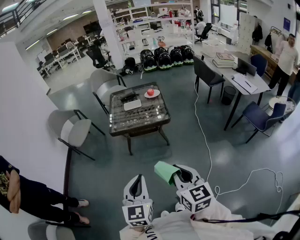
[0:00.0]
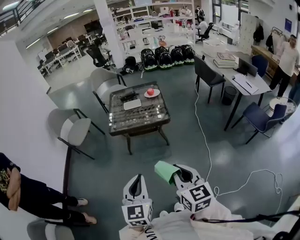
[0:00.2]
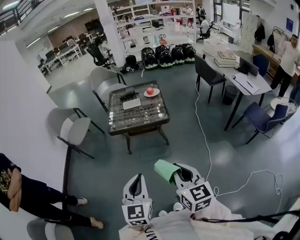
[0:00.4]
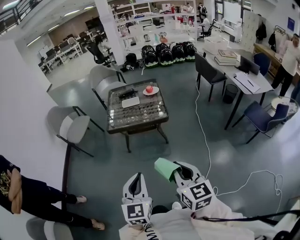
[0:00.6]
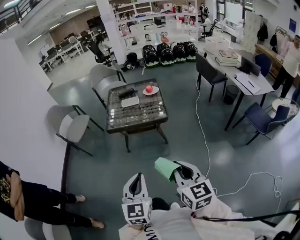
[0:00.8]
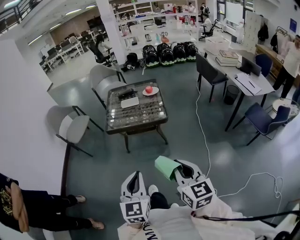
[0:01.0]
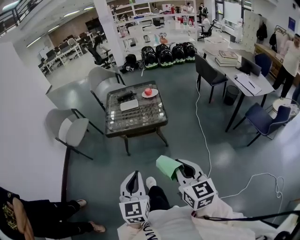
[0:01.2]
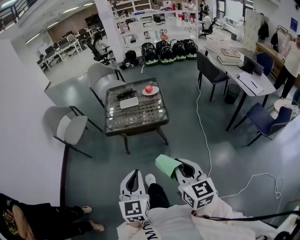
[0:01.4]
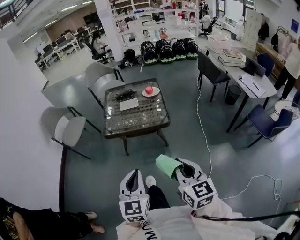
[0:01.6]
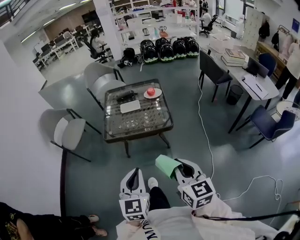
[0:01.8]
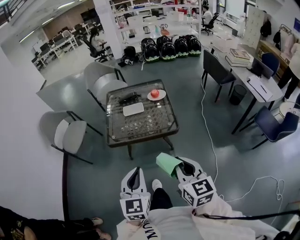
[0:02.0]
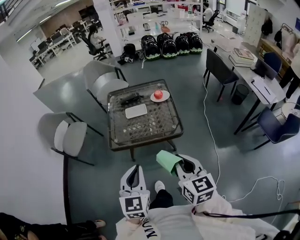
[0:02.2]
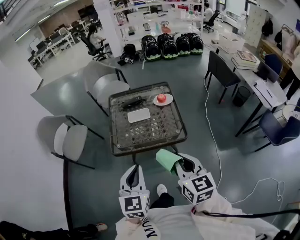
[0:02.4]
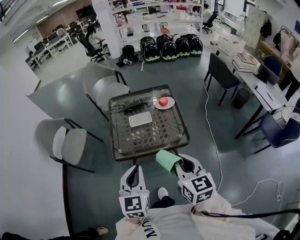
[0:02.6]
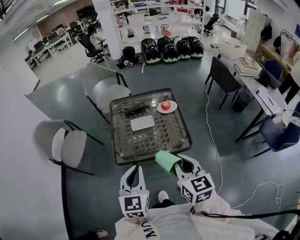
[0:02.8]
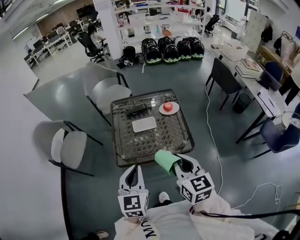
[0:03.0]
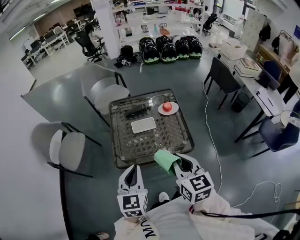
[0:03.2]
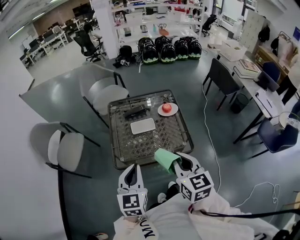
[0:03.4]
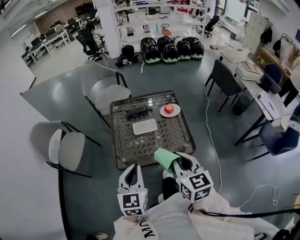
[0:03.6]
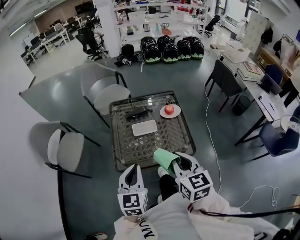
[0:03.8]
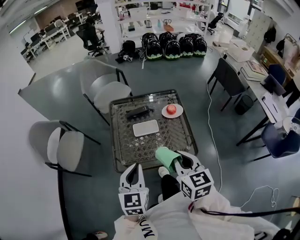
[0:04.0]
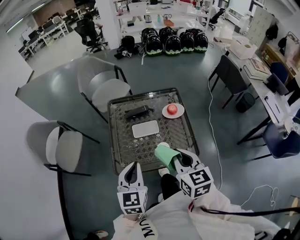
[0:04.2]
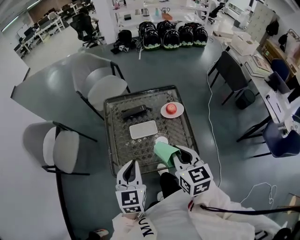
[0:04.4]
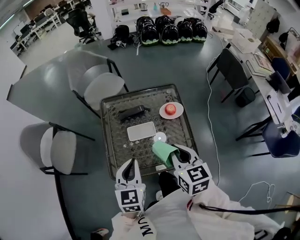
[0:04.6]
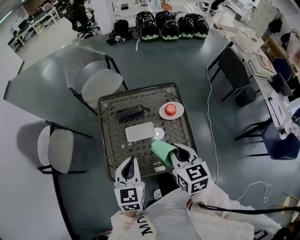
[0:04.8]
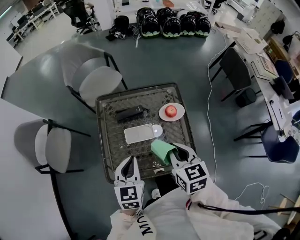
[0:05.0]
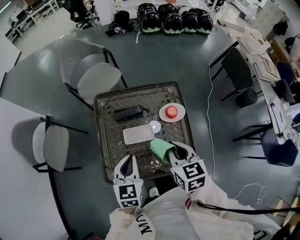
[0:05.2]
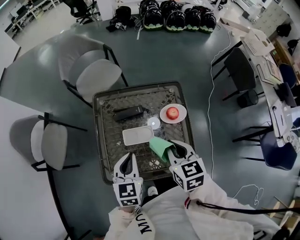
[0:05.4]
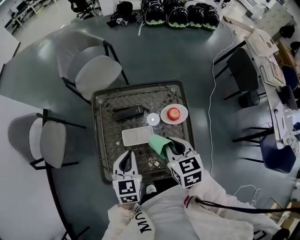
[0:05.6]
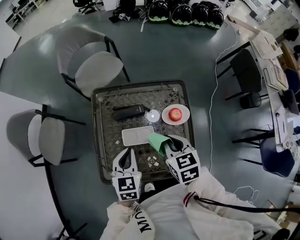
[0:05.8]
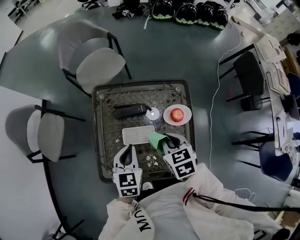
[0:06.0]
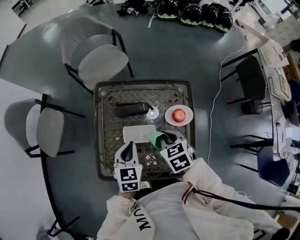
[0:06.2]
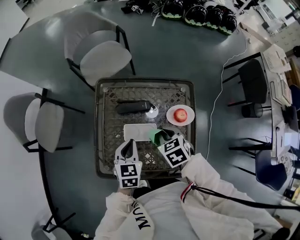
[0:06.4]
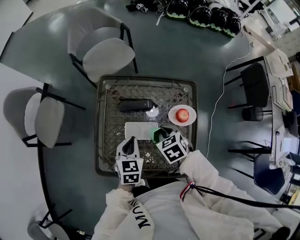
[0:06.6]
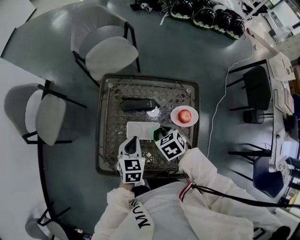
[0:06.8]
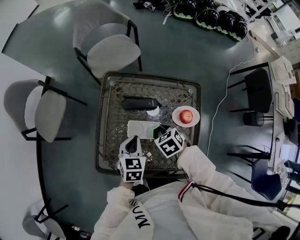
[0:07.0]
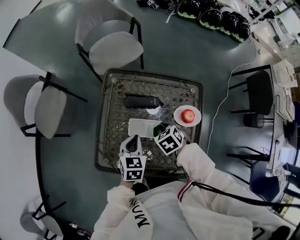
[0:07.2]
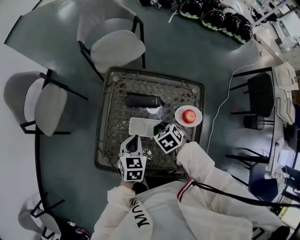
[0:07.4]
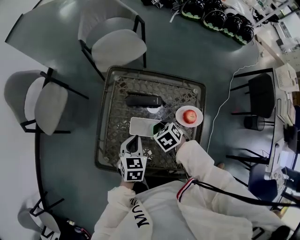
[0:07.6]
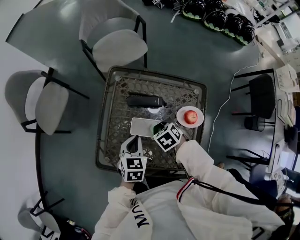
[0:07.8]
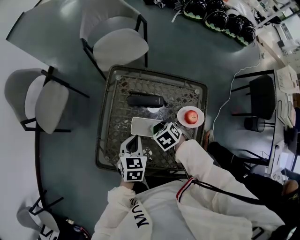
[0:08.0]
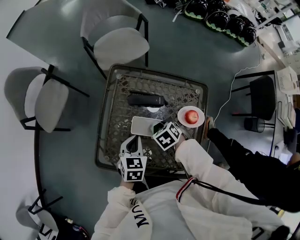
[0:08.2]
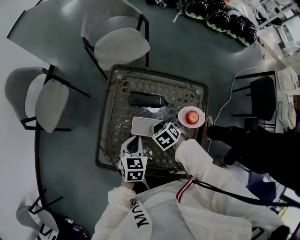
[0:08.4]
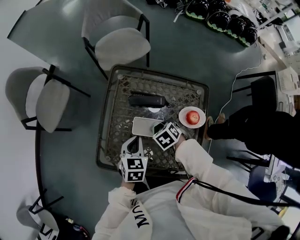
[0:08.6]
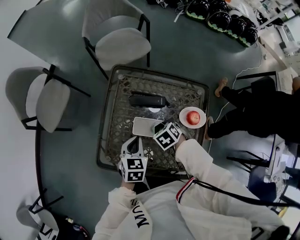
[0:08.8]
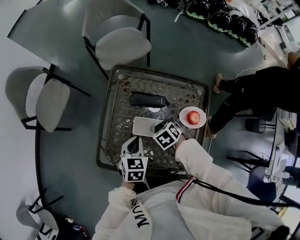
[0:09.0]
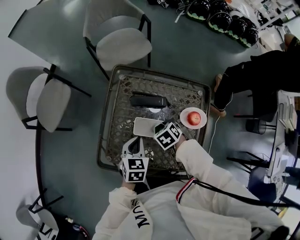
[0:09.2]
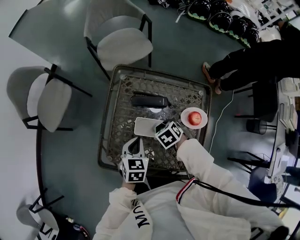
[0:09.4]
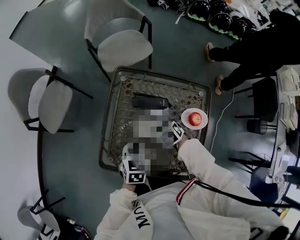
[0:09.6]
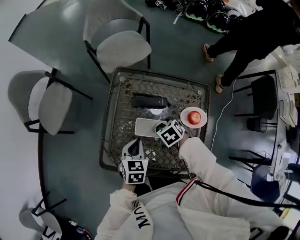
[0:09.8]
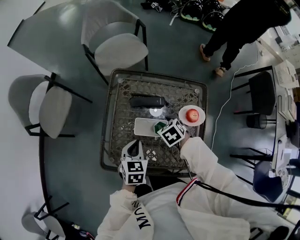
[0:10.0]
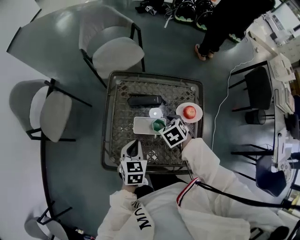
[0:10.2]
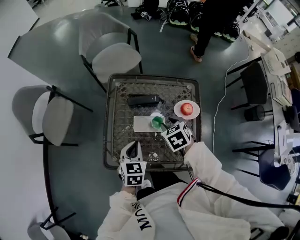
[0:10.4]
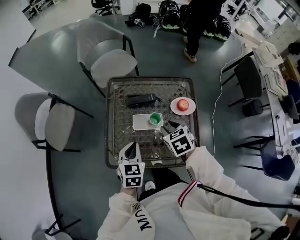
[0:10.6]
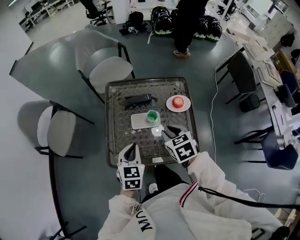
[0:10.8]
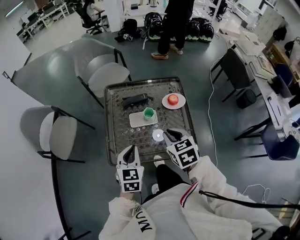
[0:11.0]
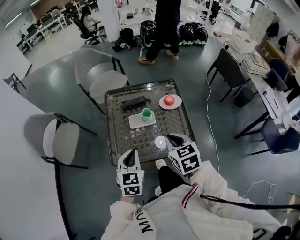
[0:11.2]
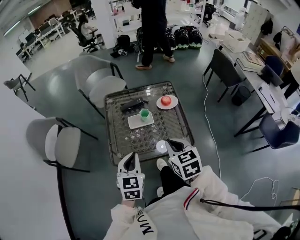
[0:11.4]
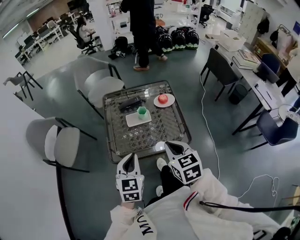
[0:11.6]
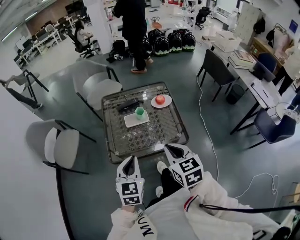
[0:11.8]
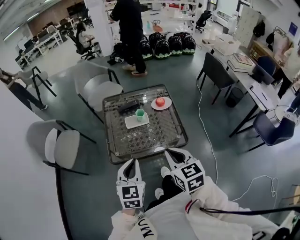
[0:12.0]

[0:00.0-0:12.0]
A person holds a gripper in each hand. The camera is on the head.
0:00.0 to 0:01.6: The left gripper travels forward by about 15 cm. Meanwhile the right gripper is displaced forward and to the right by approximately 15 cm.
0:01.6 to 0:03.0: The grippers both shift forward and to the left by some 35 cm.
0:03.0 to 0:04.4: The two grippers go about 15 cm forward.
0:04.4 to 0:06.0: Both grippers move forward and downward, approximately 25 cm. The right gripper turns by about 30 degrees.
0:06.0 to 0:07.6: The right gripper travels downward by roughly 15 cm, and changes its angle by roughly 30 degrees; the left gripper shifts some 10 cm downward.
0:07.6 to 0:09.0: There are only small adjustments of the grippers.
0:09.0 to 0:10.4: The right gripper heads upward, covering some 10 cm, changes its angle by approximately 20 degrees, and opens up; the left gripper shifts by approximately 10 cm.
0:10.4 to 0:12.0: Both grippers travel together backward and upward, some 40 cm. The right gripper angles its fingers upward, by roughly 30 degrees, and closes up. The left gripper changes its angle by roughly 30 degrees.

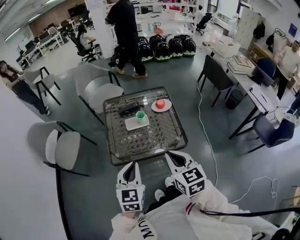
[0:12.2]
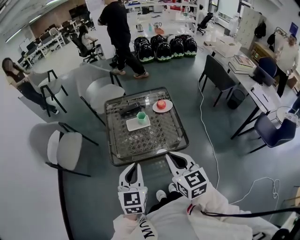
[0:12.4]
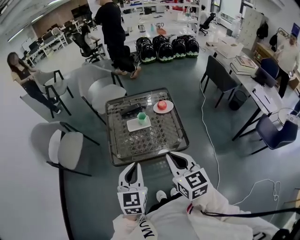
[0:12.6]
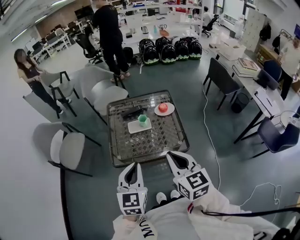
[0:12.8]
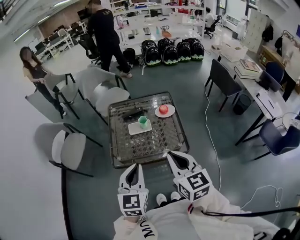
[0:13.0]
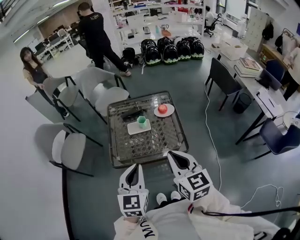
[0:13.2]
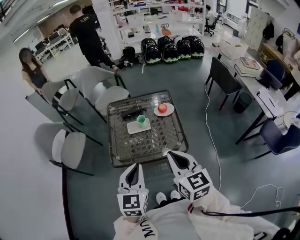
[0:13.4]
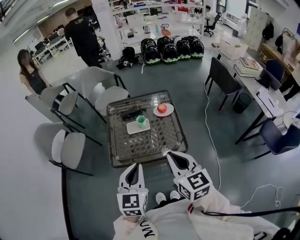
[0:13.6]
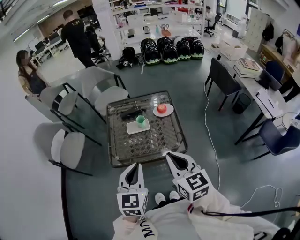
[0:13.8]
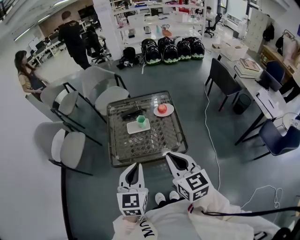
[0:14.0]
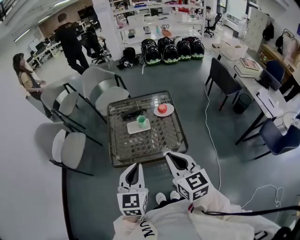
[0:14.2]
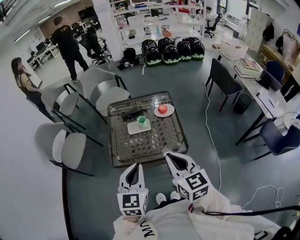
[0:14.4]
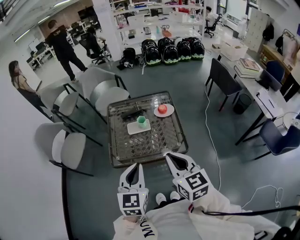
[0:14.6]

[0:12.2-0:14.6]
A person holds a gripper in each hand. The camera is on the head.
0:12.2 to 0:13.4: The left gripper travels to the right and upward by roughly 10 cm, while the right gripper moves to the right, some 5 cm.
0:13.4 to 0:14.6: The two grippers keep their place.

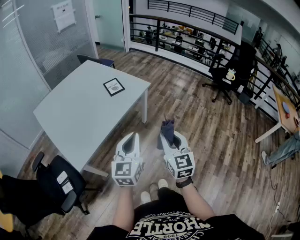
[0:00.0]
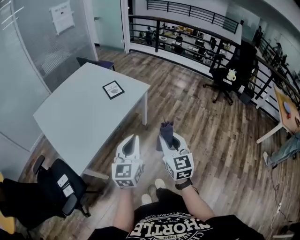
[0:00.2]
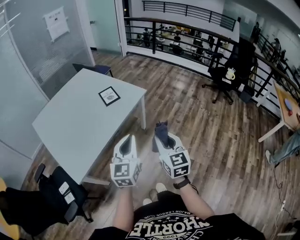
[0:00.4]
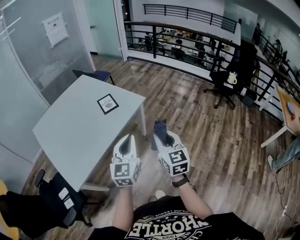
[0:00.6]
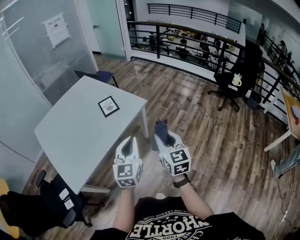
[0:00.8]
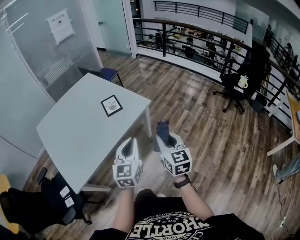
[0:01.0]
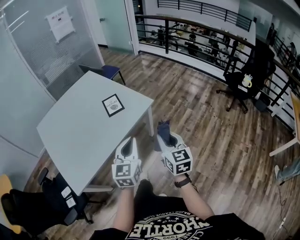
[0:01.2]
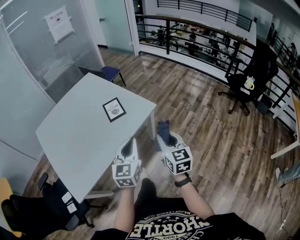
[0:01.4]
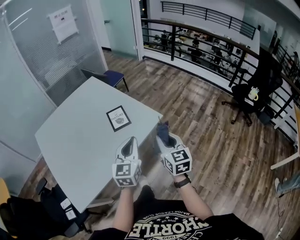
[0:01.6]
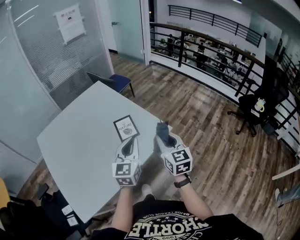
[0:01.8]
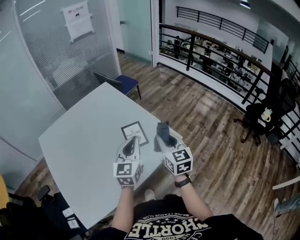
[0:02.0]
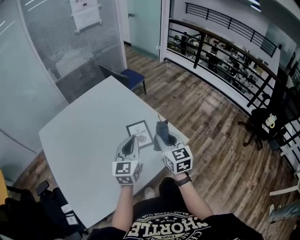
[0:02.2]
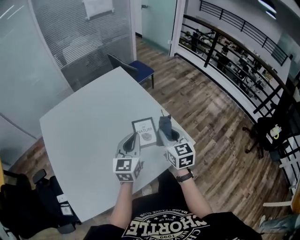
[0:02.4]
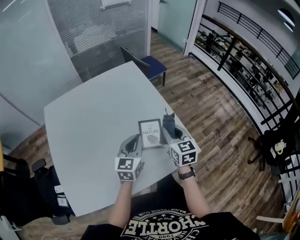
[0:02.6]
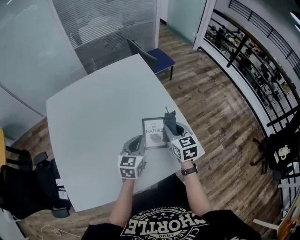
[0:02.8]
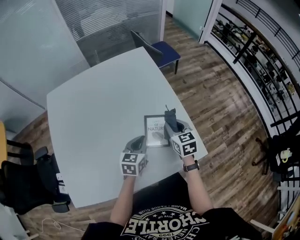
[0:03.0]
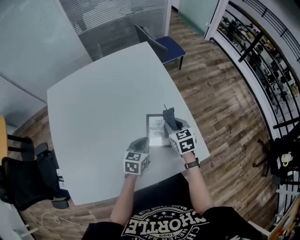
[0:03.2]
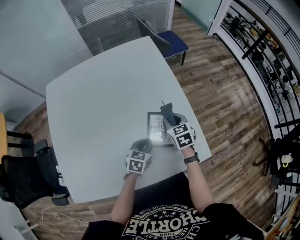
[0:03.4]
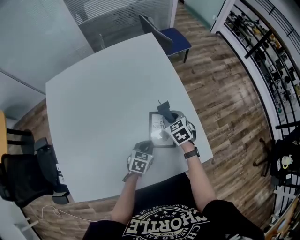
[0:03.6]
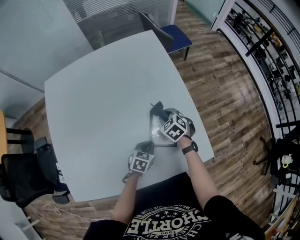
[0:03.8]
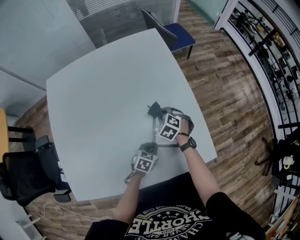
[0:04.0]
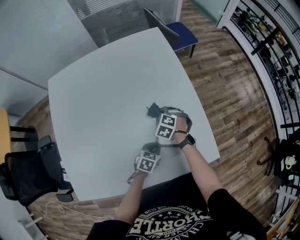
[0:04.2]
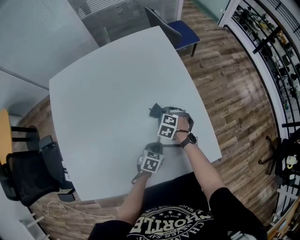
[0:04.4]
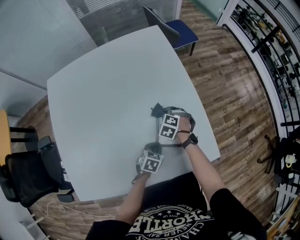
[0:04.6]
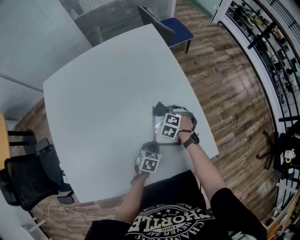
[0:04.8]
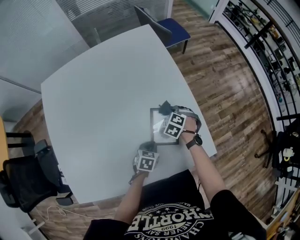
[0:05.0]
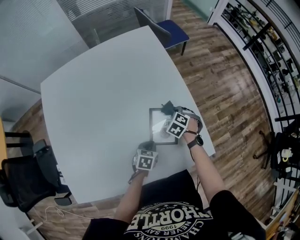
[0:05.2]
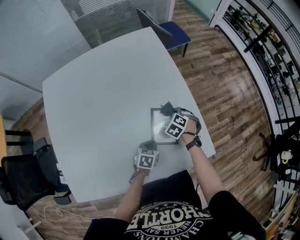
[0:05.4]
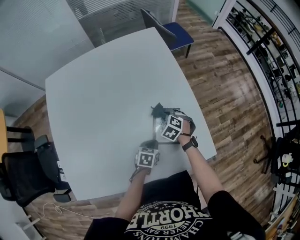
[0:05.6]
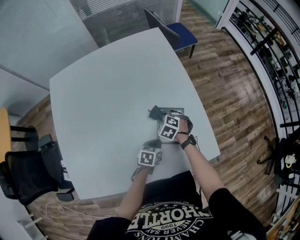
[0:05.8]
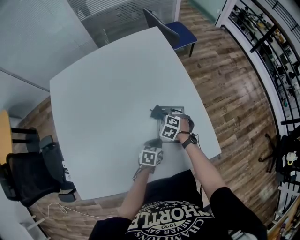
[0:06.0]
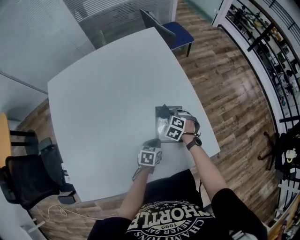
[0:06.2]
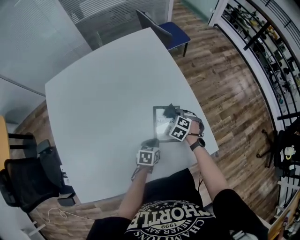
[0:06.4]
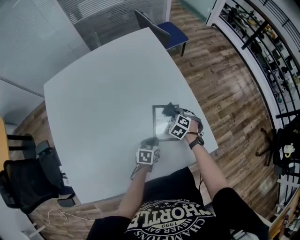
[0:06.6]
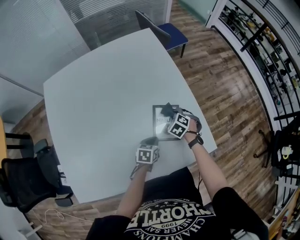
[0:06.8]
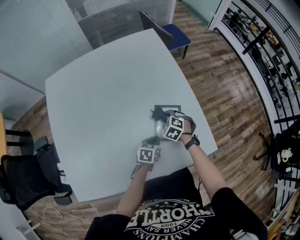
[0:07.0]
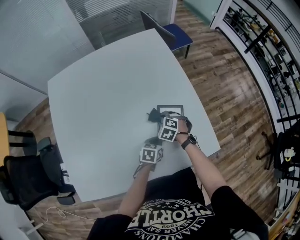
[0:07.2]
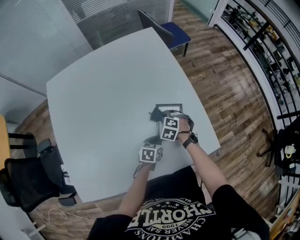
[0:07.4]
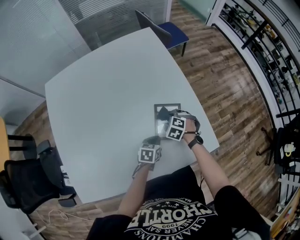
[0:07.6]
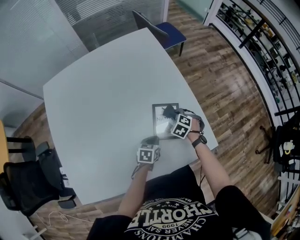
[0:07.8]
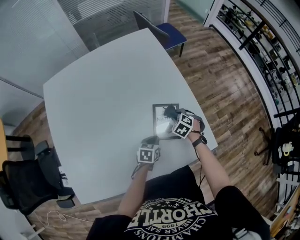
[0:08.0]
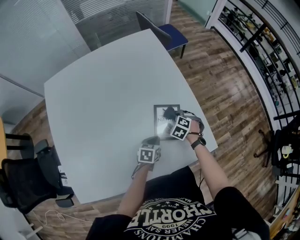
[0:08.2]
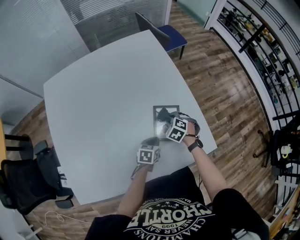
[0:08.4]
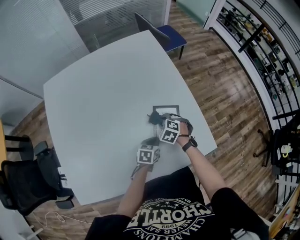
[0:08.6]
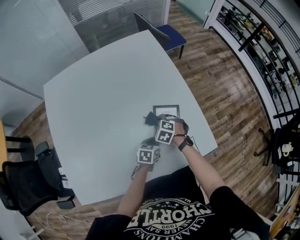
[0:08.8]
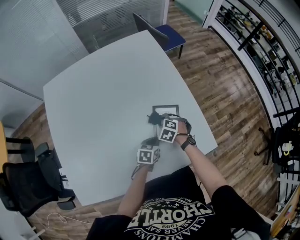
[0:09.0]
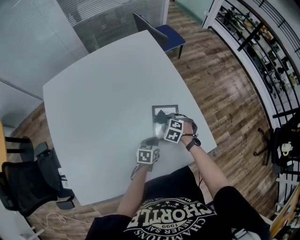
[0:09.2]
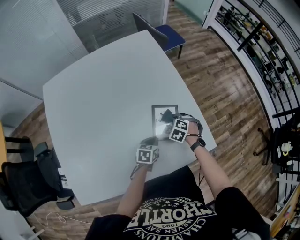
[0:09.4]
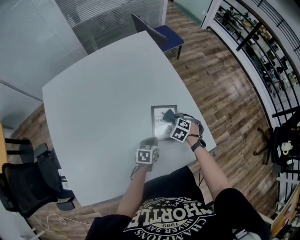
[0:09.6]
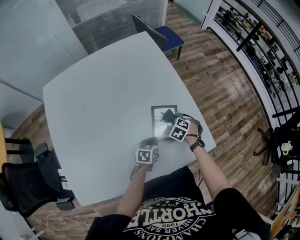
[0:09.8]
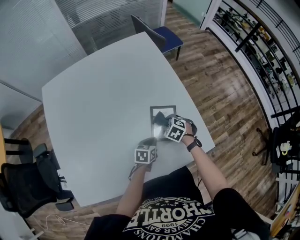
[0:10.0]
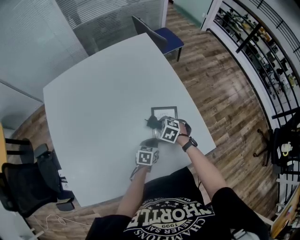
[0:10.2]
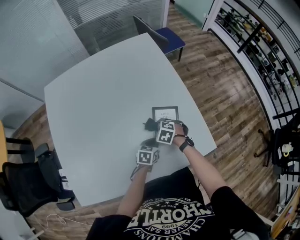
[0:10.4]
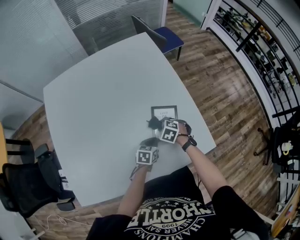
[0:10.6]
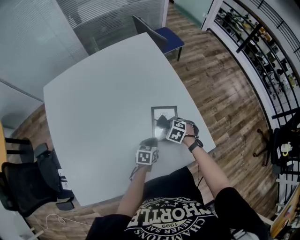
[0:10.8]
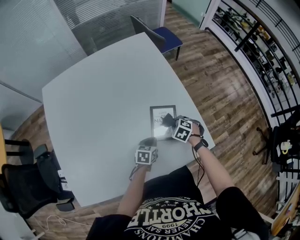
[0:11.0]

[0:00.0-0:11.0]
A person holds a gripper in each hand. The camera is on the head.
0:00.0 to 0:01.6: The grippers both shift forward by approximately 40 cm.
0:01.6 to 0:03.2: The two grippers go some 50 cm forward and downward. The right gripper turns by about 40 degrees. The left gripper turns by roughly 40 degrees.
0:03.2 to 0:04.8: Both grippers move downward, approximately 15 cm. The right gripper rolls counterclockwise, seen from behind, by some 50 degrees. The left gripper turns by about 20 degrees.
0:04.8 to 0:06.2: The right gripper swings left and right, roughly 10 cm each way, with 2 reversals.
0:06.2 to 0:07.8: The right gripper swings left and right, roughly 10 cm each way, with 2 reversals.
0:07.8 to 0:09.4: The right gripper moves some 10 cm to the left and comes back.
0:09.4 to 0:11.0: The right gripper reaches approximately 10 cm to the left, then returns.
